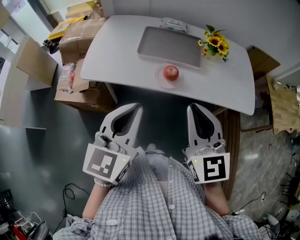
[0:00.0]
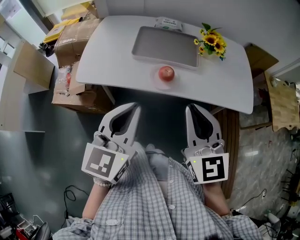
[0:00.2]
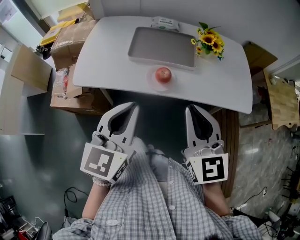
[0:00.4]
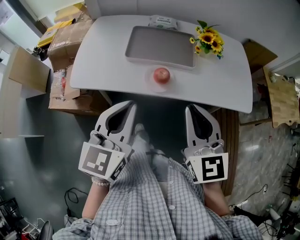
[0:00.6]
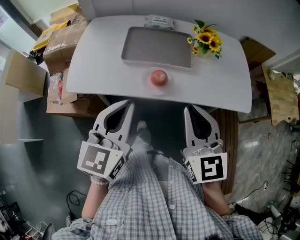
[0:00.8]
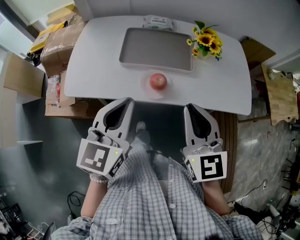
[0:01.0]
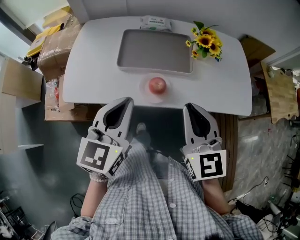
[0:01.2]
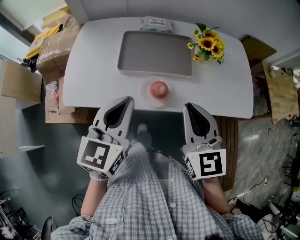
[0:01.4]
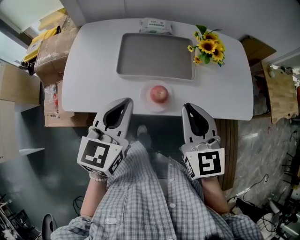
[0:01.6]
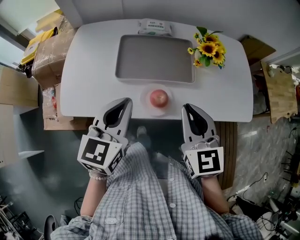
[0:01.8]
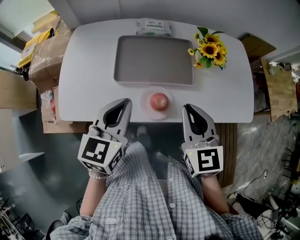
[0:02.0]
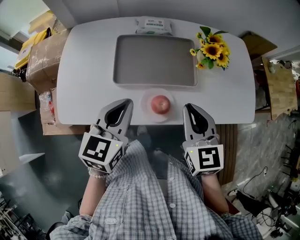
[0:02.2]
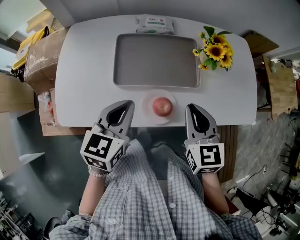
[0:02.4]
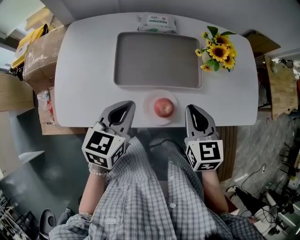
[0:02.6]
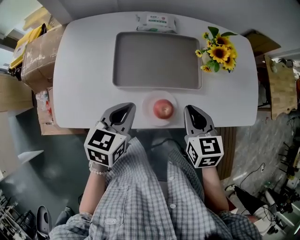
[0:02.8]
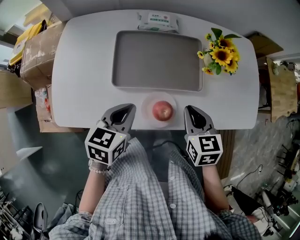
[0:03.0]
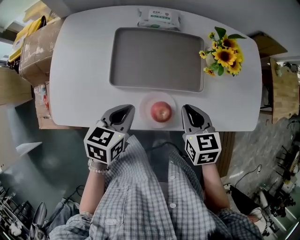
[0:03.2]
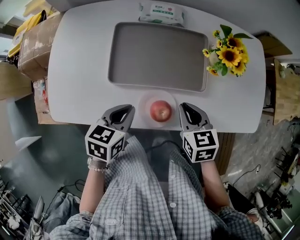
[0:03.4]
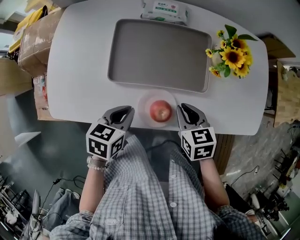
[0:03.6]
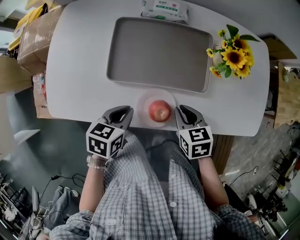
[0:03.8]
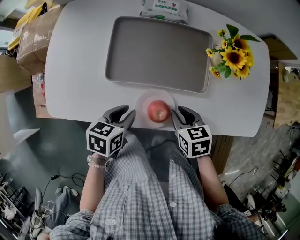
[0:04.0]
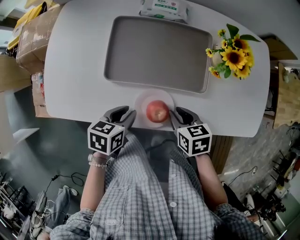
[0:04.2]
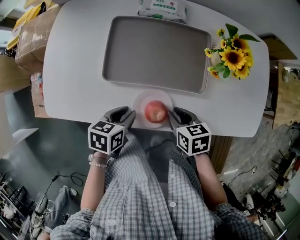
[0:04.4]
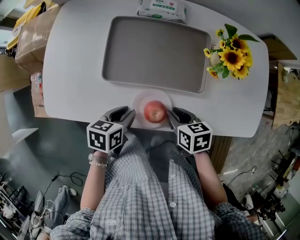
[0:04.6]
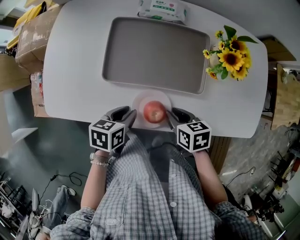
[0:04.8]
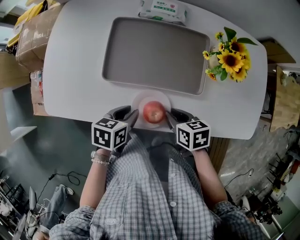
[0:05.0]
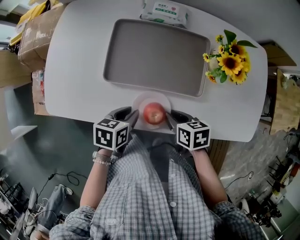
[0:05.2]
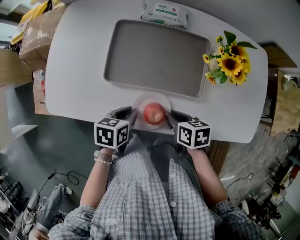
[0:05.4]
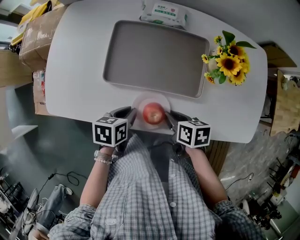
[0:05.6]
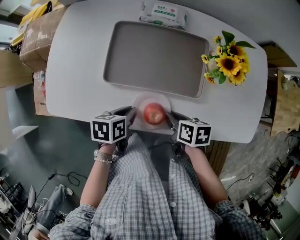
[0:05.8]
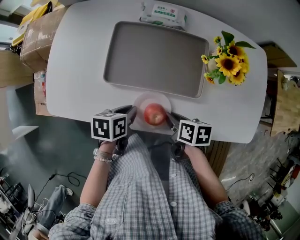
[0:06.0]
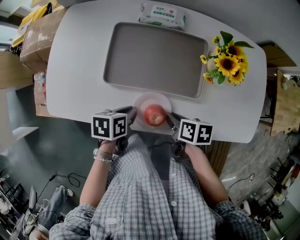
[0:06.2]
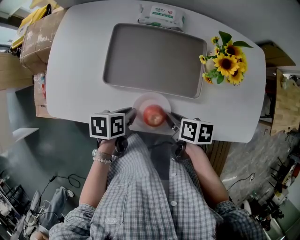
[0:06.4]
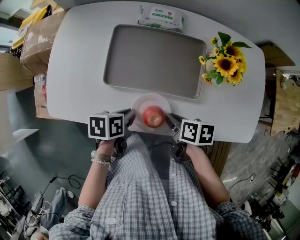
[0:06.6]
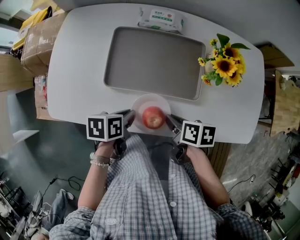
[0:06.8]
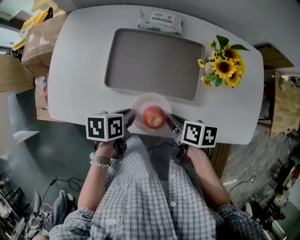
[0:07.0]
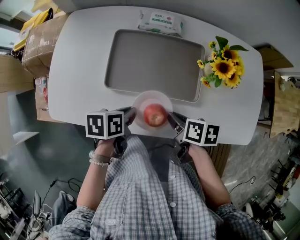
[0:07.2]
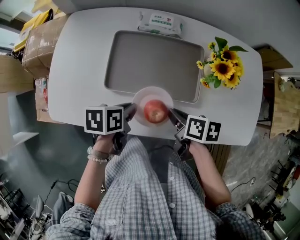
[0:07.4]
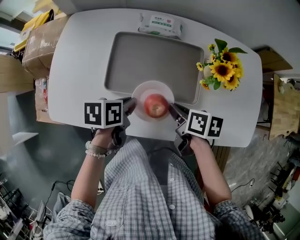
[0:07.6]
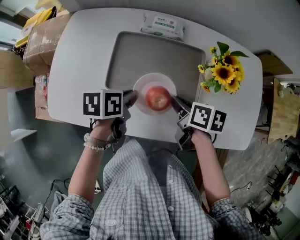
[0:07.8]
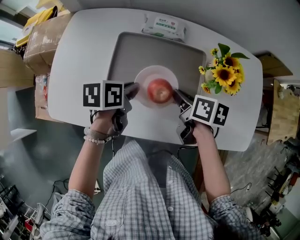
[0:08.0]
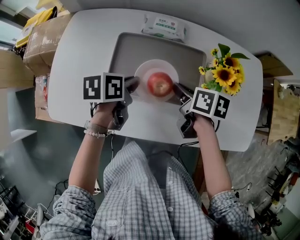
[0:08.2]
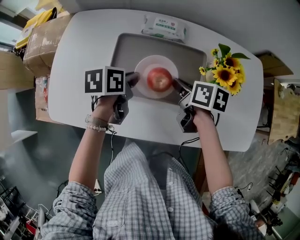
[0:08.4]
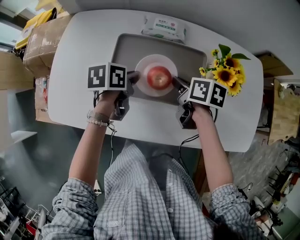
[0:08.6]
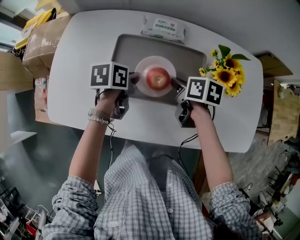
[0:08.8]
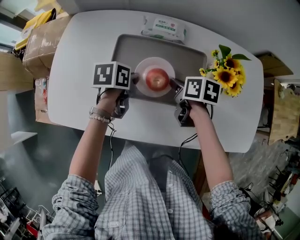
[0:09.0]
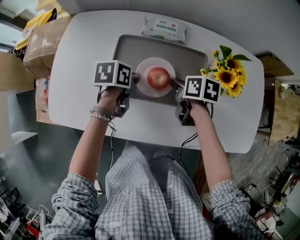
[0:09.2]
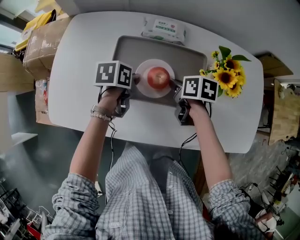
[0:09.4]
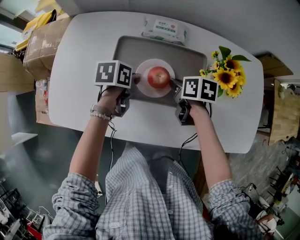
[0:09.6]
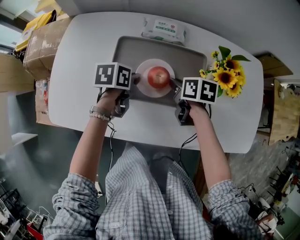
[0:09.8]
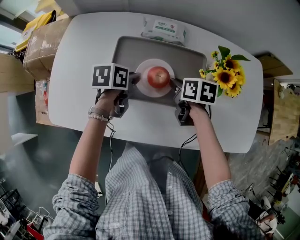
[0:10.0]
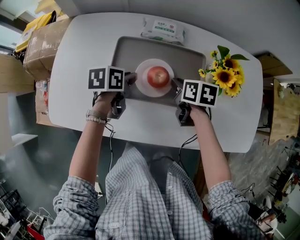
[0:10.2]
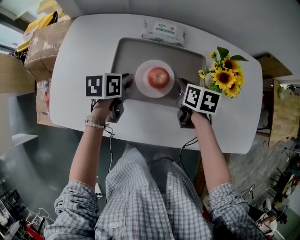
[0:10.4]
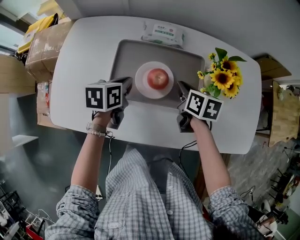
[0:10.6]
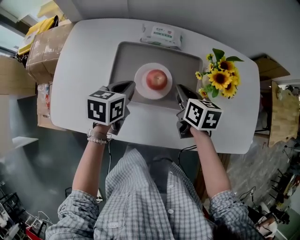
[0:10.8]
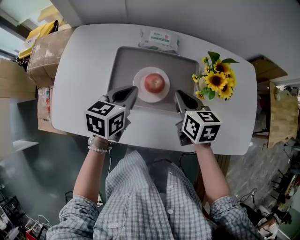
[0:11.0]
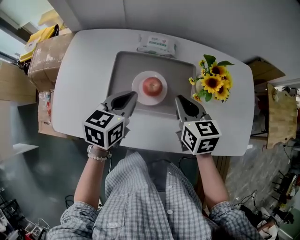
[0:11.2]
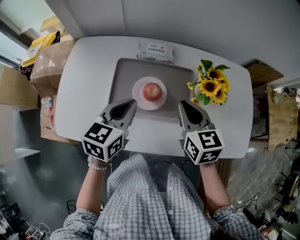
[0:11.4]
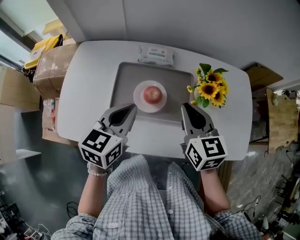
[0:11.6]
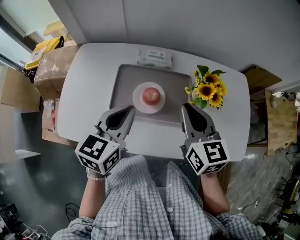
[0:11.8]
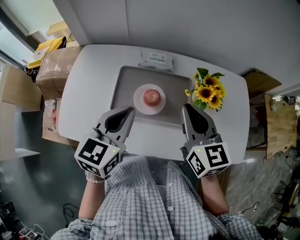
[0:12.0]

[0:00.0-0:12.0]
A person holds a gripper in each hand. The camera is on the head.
0:00.0 to 0:01.6: Both grippers move forward, roughly 15 cm.
0:01.6 to 0:03.0: The two grippers go some 15 cm downward and forward. The left gripper turns by roughly 30 degrees; the right gripper turns by some 30 degrees.
0:03.0 to 0:04.4: Both grippers travel together downward, approximately 10 cm. The left gripper swivels about 20 degrees, and opens, while the right gripper swivels approximately 30 degrees.
0:04.4 to 0:06.0: The right gripper rotates some 20 degrees.
0:06.0 to 0:07.6: Both grippers travel together forward and upward, approximately 10 cm.
0:07.6 to 0:09.0: Both grippers travel together forward, some 10 cm.
0:09.0 to 0:10.4: There are only small adjustments of the grippers.
0:10.4 to 0:12.0: The right gripper travels upward by about 25 cm, and tilts its fingers approximately 30 degrees upward, while the left gripper travels upward and backward by about 25 cm, and swivels about 40 degrees.

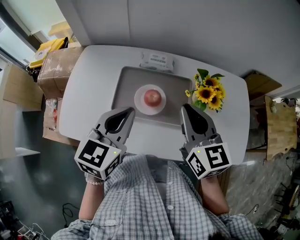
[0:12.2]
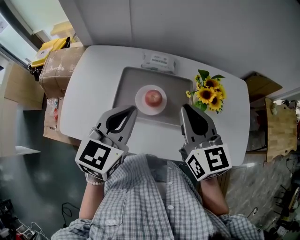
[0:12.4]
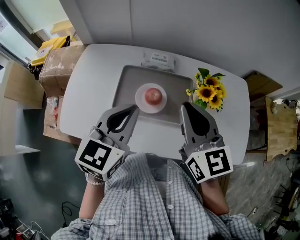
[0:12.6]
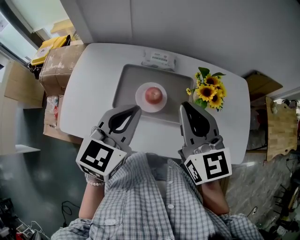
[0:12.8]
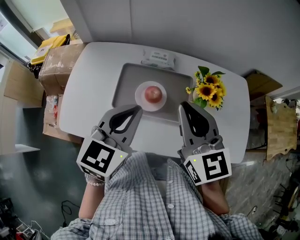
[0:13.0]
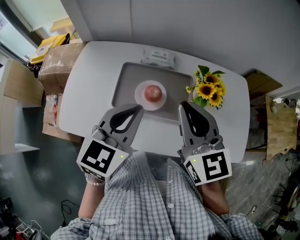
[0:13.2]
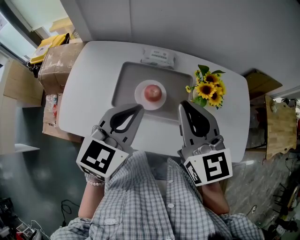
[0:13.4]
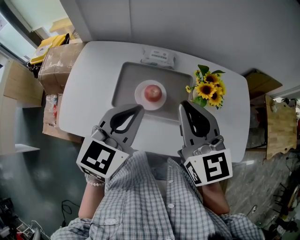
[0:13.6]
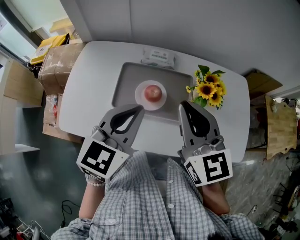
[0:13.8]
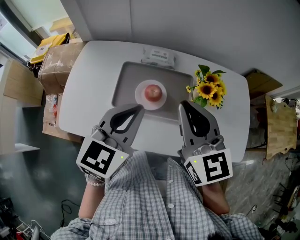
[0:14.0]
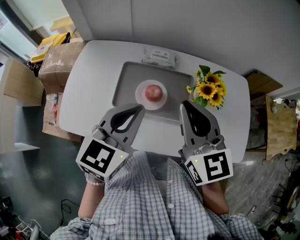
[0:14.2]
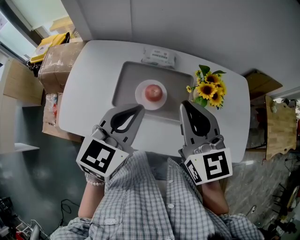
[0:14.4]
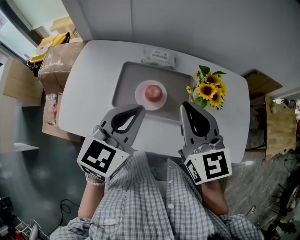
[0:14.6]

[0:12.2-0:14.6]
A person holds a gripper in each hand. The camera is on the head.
0:12.2 to 0:13.4: The right gripper shifts by some 5 cm.
0:13.4 to 0:14.6: Both grippers stay about where they are.

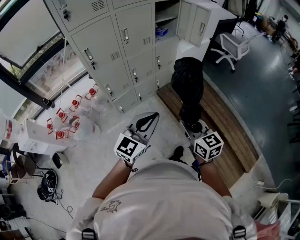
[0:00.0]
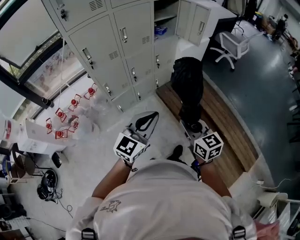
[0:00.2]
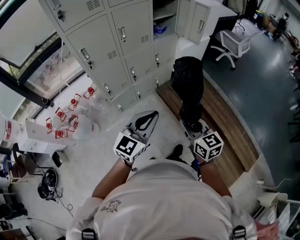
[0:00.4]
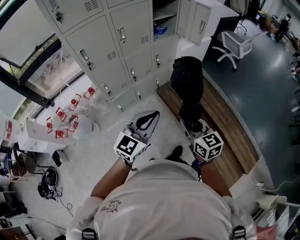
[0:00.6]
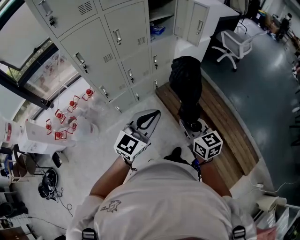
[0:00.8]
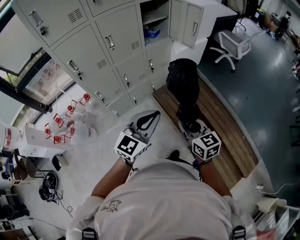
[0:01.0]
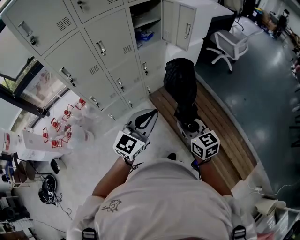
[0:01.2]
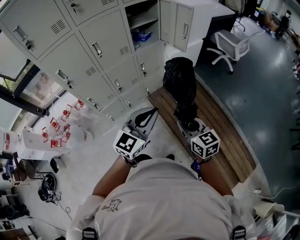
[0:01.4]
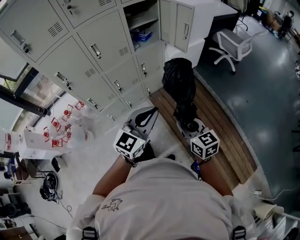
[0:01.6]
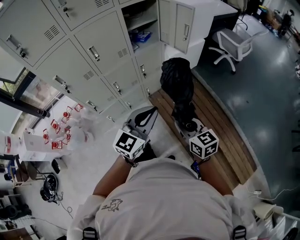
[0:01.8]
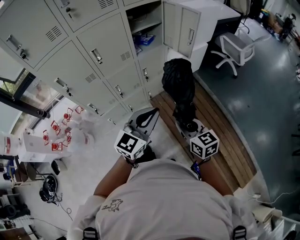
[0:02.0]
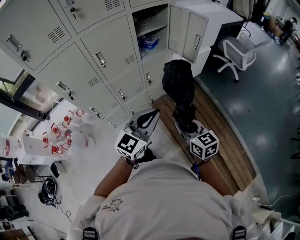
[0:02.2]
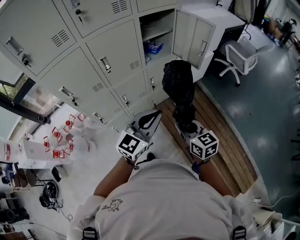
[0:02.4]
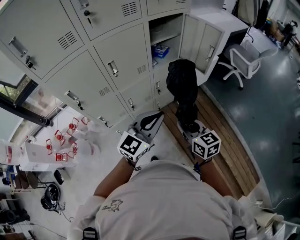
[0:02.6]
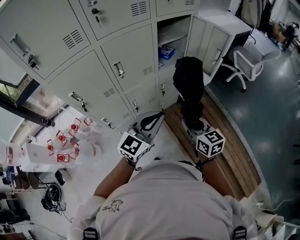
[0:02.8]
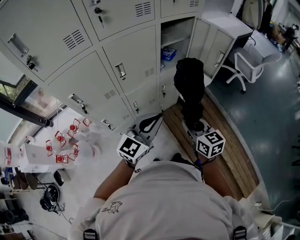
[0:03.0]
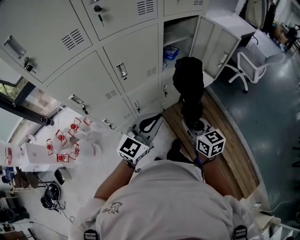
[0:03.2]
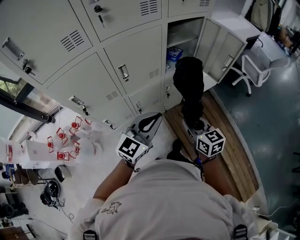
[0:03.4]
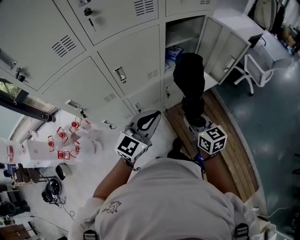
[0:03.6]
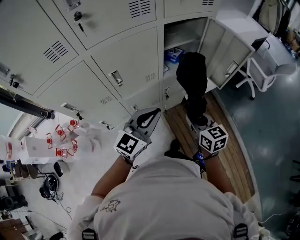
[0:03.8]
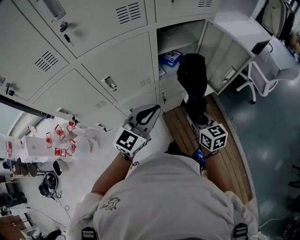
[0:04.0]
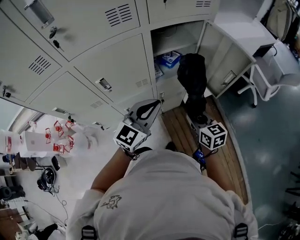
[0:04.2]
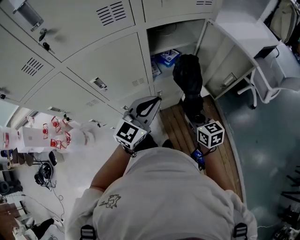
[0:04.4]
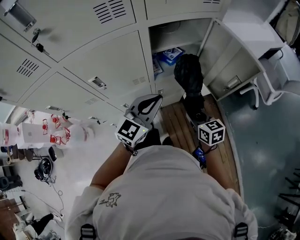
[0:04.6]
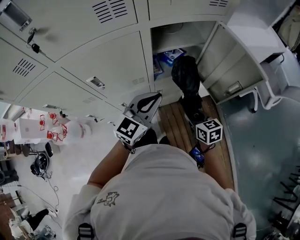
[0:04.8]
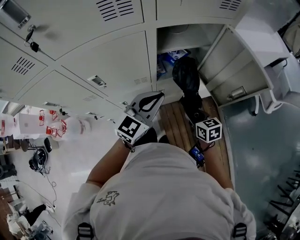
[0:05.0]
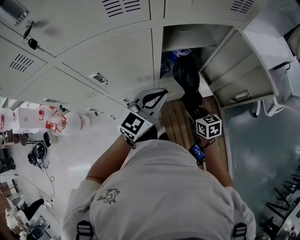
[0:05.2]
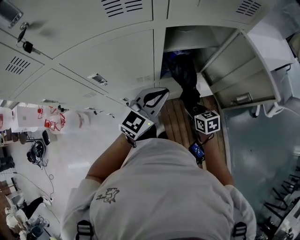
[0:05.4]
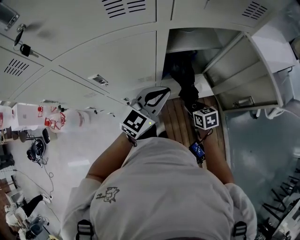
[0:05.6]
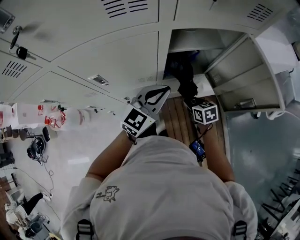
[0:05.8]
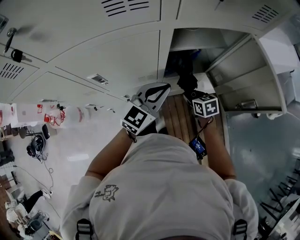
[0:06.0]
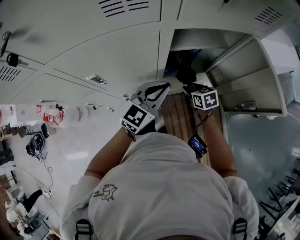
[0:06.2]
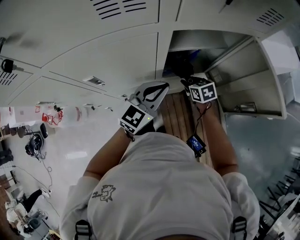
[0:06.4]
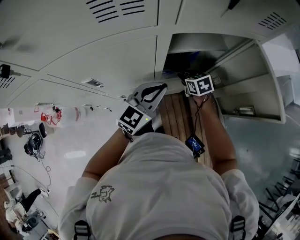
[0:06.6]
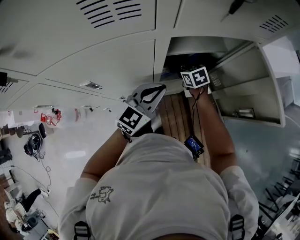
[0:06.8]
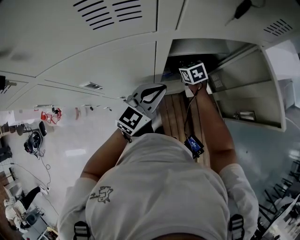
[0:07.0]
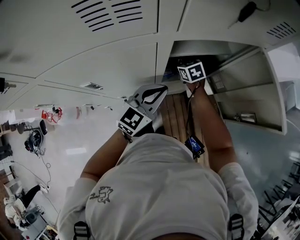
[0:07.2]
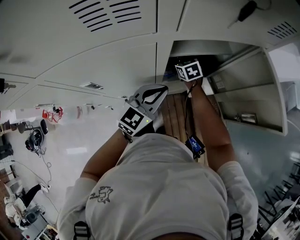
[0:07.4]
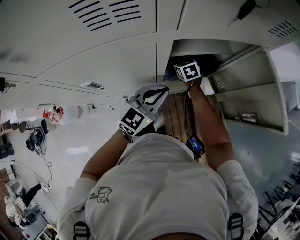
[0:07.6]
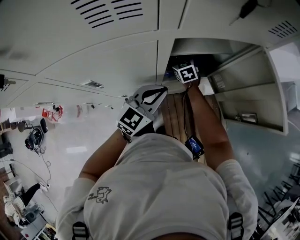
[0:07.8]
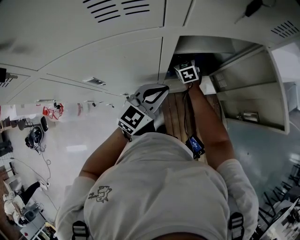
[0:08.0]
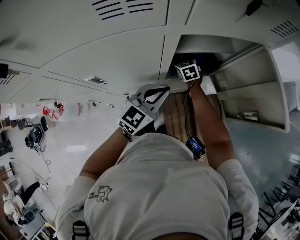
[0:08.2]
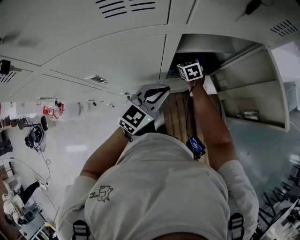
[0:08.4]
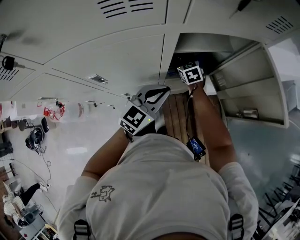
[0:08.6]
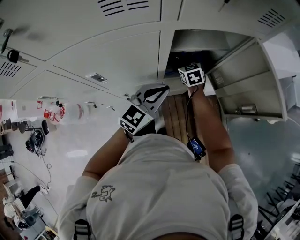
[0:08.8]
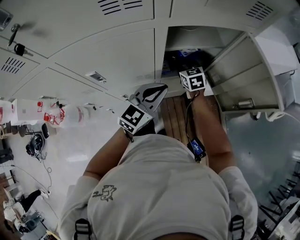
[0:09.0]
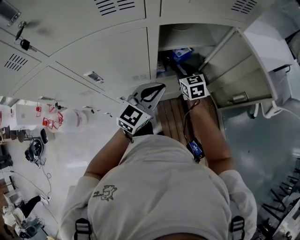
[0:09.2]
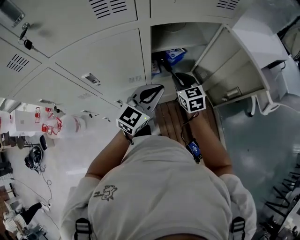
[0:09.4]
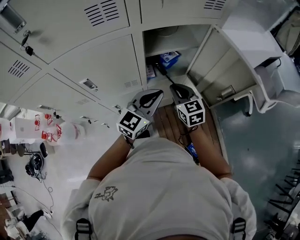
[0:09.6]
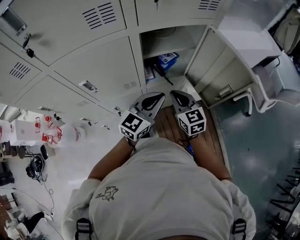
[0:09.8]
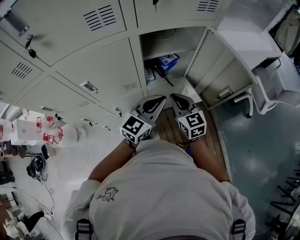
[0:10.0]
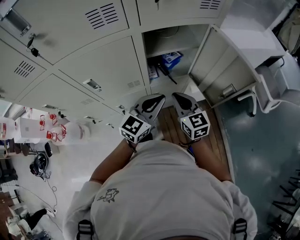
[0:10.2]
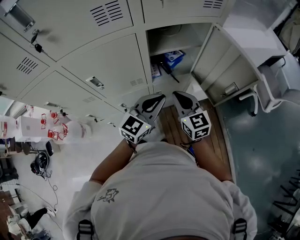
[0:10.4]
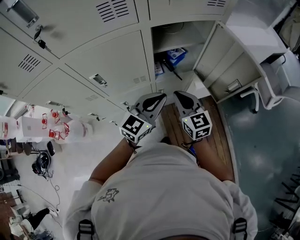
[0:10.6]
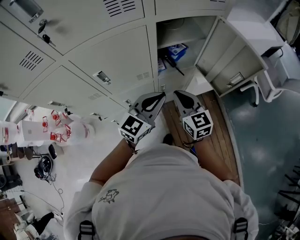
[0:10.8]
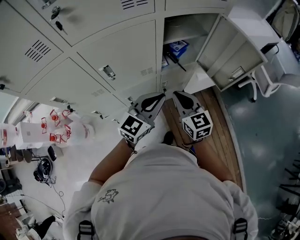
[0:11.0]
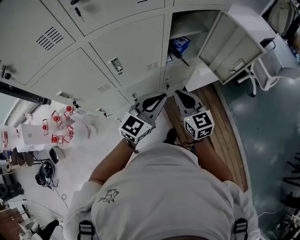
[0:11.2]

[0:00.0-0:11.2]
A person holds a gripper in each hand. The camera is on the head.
0:00.0 to 0:01.6: Both grippers move forward and to the right, about 25 cm.
0:01.6 to 0:03.2: The right gripper heads forward and to the left, covering roughly 30 cm. Meanwhile the left gripper heads to the left and forward, covering roughly 25 cm.
0:03.2 to 0:04.8: The right gripper goes approximately 30 cm forward, to the right and downward, and changes its angle by roughly 20 degrees, while the left gripper heads forward, covering about 25 cm.
0:04.8 to 0:06.4: The left gripper shifts some 10 cm forward, while the right gripper heads forward, covering some 20 cm.
0:06.4 to 0:08.0: The right gripper travels forward and to the left by about 15 cm, and changes its angle by some 20 degrees.
0:08.0 to 0:09.6: The right gripper moves backward, upward and to the right, approximately 30 cm, and closes up. The left gripper goes about 10 cm backward, to the right and upward.
0:09.6 to 0:11.2: The grippers both shift backward and to the left by about 20 cm.
